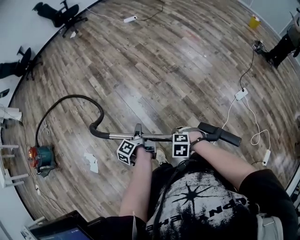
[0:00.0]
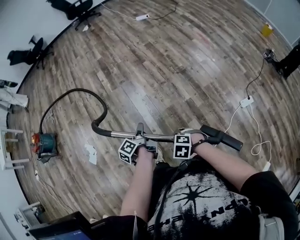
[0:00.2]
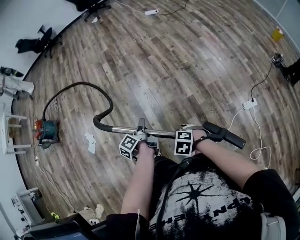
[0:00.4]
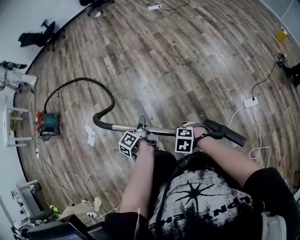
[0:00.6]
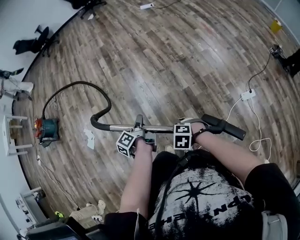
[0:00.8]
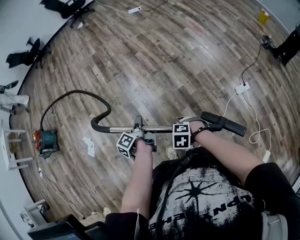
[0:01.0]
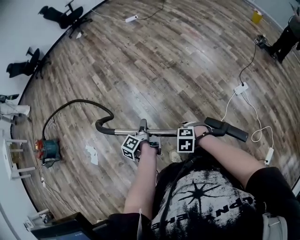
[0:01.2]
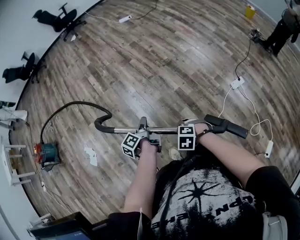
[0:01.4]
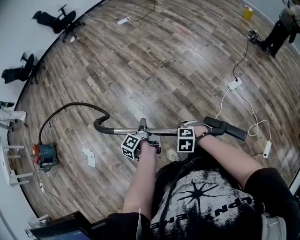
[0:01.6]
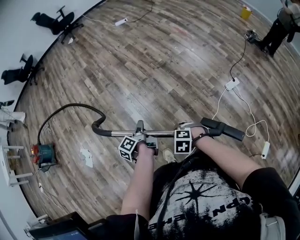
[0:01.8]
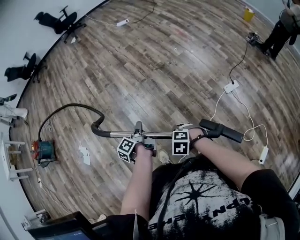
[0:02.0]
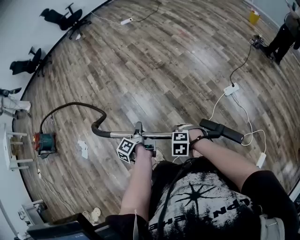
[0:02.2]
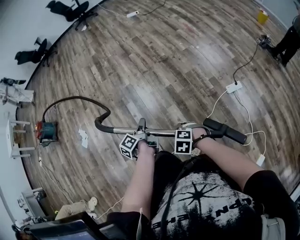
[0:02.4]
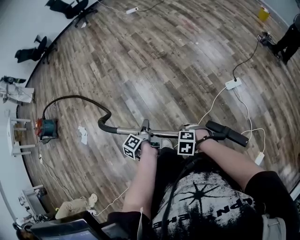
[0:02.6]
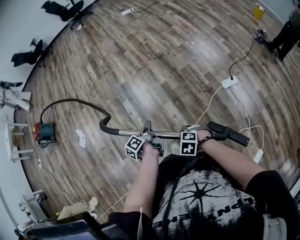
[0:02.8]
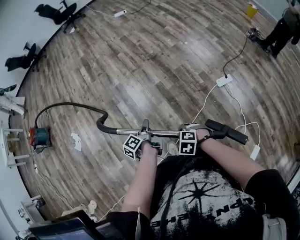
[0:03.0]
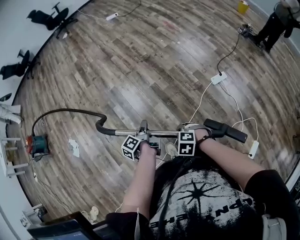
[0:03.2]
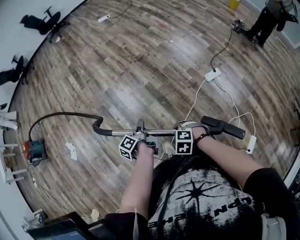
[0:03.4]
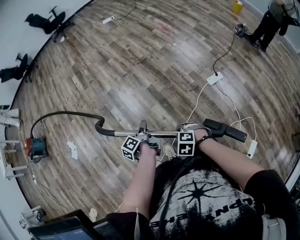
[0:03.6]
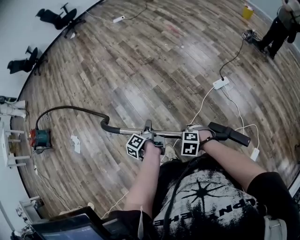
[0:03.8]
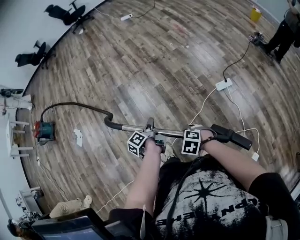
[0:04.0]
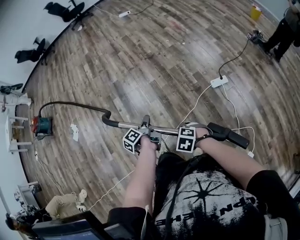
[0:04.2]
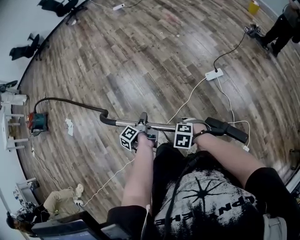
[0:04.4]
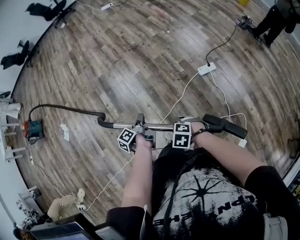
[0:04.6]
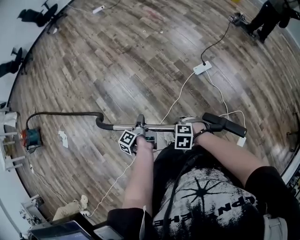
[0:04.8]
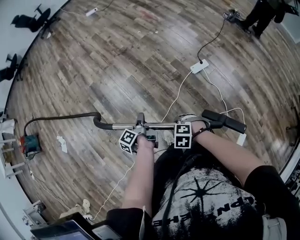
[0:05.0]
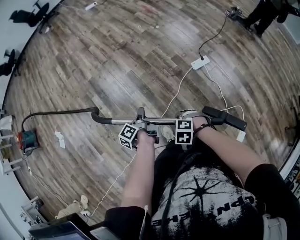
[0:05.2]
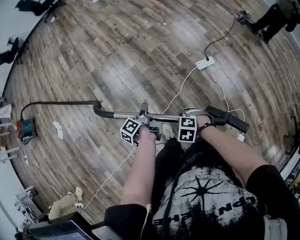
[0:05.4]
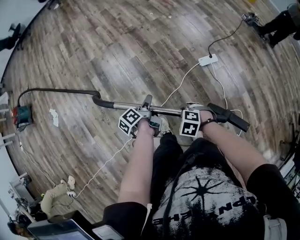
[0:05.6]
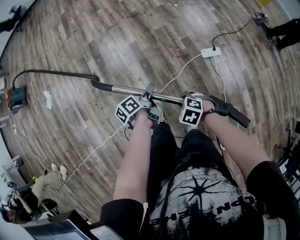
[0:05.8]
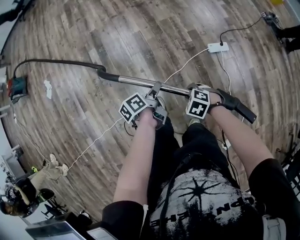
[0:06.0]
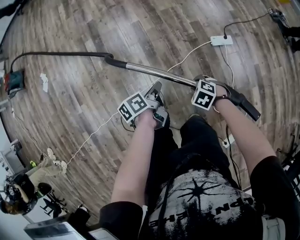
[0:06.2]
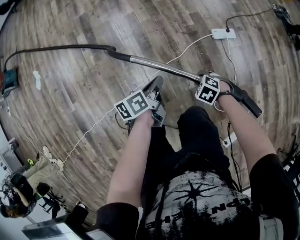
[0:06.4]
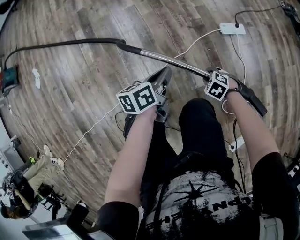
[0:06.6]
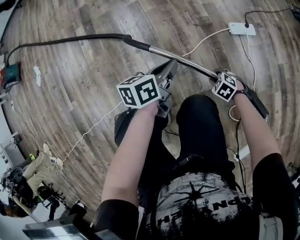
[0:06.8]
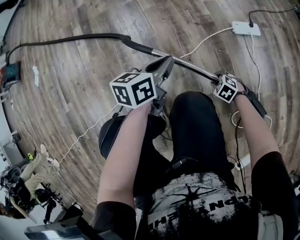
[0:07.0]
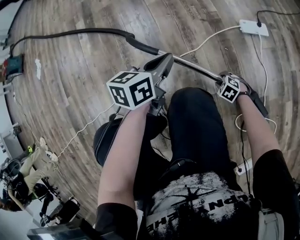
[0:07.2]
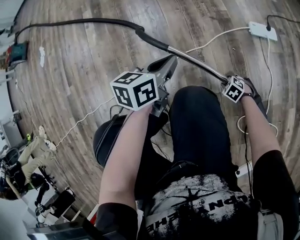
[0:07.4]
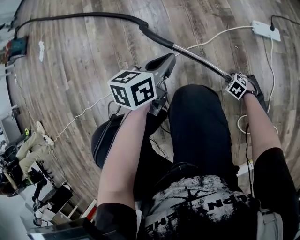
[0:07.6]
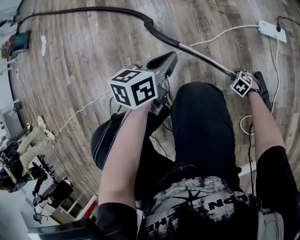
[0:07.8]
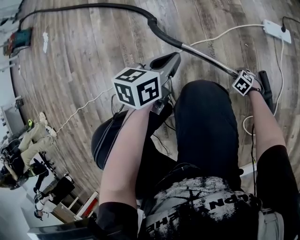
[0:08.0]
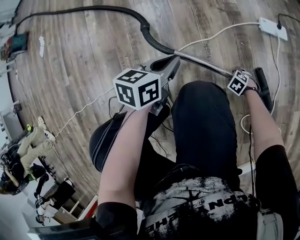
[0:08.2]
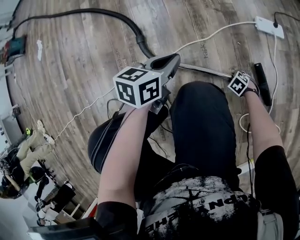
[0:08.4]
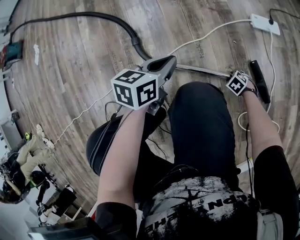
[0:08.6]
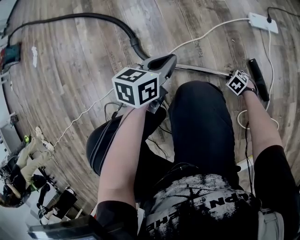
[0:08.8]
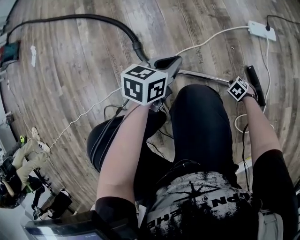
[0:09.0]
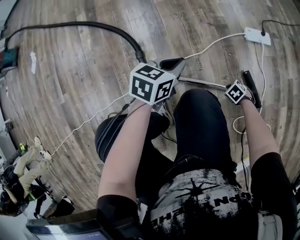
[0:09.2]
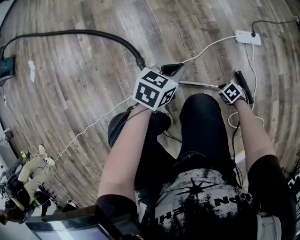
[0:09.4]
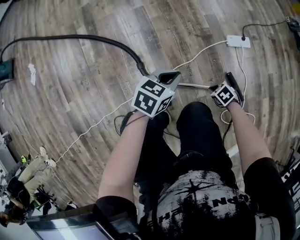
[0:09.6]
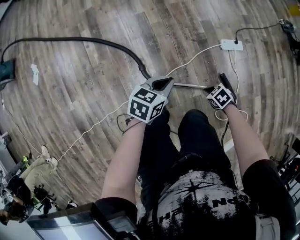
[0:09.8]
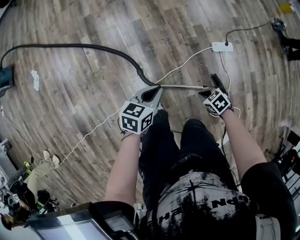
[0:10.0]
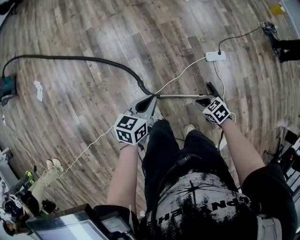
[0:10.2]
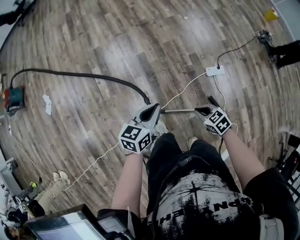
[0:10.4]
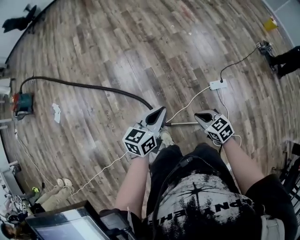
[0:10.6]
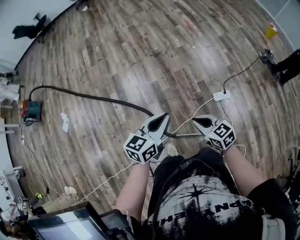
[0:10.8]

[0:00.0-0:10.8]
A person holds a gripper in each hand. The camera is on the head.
0:00.0 to 0:01.6: The left gripper moves approximately 20 cm, while the right gripper moves some 20 cm.
0:01.6 to 0:03.0: The right gripper ends up some 25 cm from where it was; the left gripper moves roughly 25 cm.
0:03.0 to 0:04.6: The left gripper ends up some 20 cm from where it was; the right gripper ends up roughly 20 cm from where it was.
0:04.6 to 0:06.2: The right gripper moves downward, about 20 cm. The left gripper changes place by approximately 20 cm, turns by approximately 20 degrees, and opens, then closes again.
0:06.2 to 0:07.8: The right gripper goes roughly 50 cm downward, while the left gripper heads downward, covering roughly 25 cm, and twists some 40 degrees clockwise, seen from behind.
0:07.8 to 0:09.2: The left gripper turns by some 20 degrees. Meanwhile the right gripper travels upward by approximately 5 cm, turns by approximately 20 degrees, and closes.
0:09.2 to 0:10.8: Both grippers travel together upward, approximately 70 cm. The left gripper rotates approximately 30 degrees, while the right gripper tips its fingers upward by approximately 40 degrees.

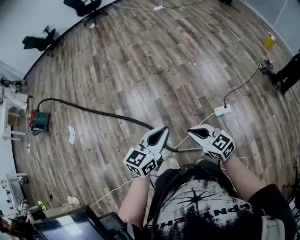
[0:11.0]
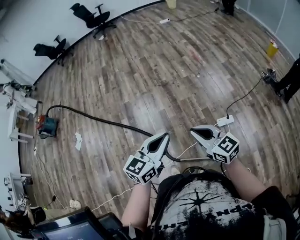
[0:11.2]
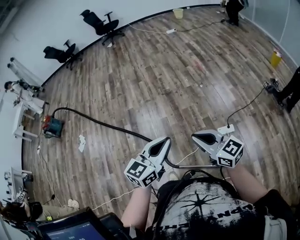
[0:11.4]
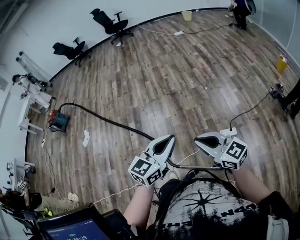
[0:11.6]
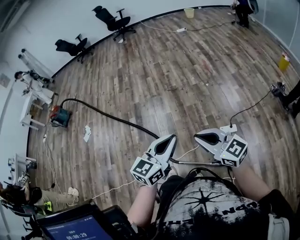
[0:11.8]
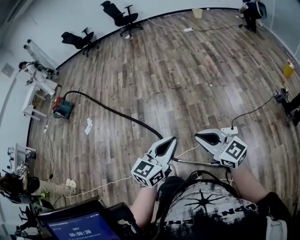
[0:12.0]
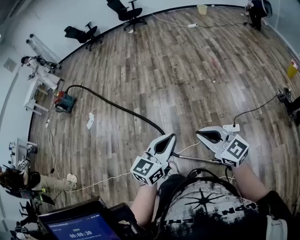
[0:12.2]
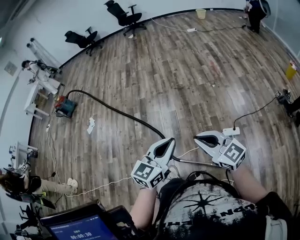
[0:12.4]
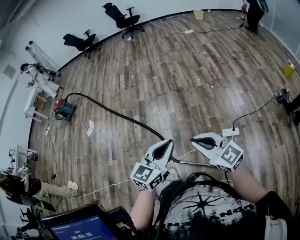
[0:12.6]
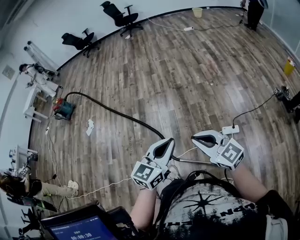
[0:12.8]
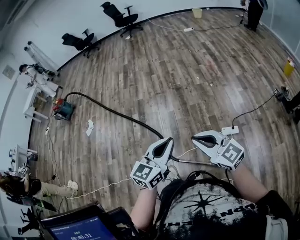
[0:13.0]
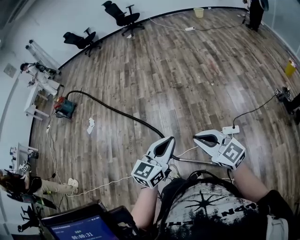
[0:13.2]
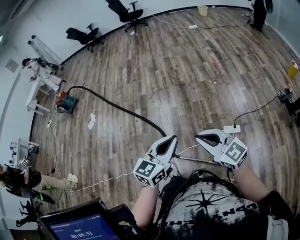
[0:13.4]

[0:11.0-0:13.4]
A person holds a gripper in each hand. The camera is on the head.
0:11.0 to 0:12.2: The right gripper travels upward, backward and to the right by approximately 20 cm, and turns by approximately 20 degrees. The left gripper heads backward, upward and to the right, covering about 20 cm.
0:12.2 to 0:13.4: The grippers move only a little.

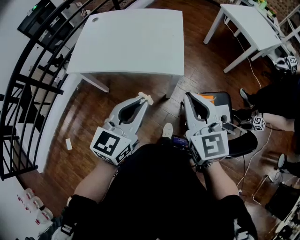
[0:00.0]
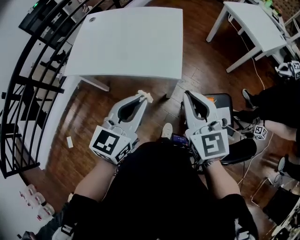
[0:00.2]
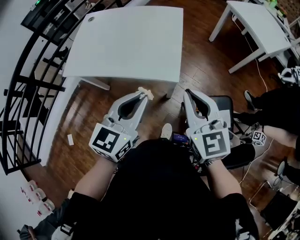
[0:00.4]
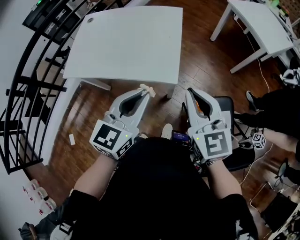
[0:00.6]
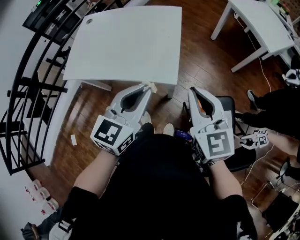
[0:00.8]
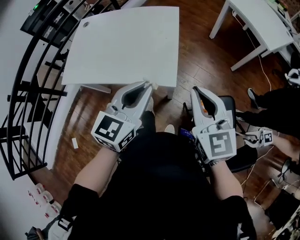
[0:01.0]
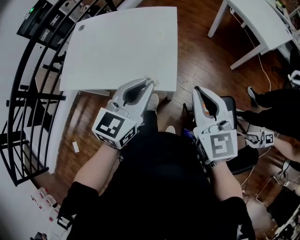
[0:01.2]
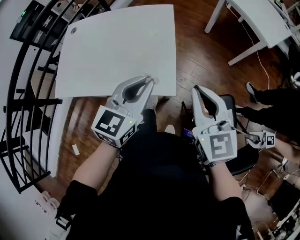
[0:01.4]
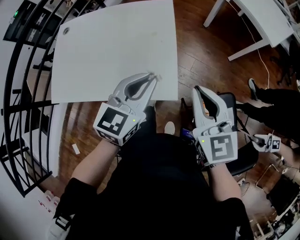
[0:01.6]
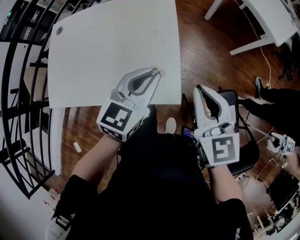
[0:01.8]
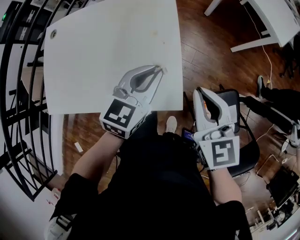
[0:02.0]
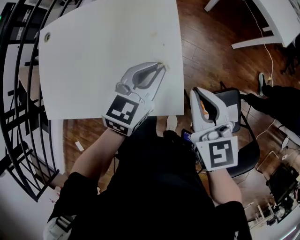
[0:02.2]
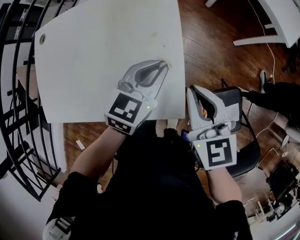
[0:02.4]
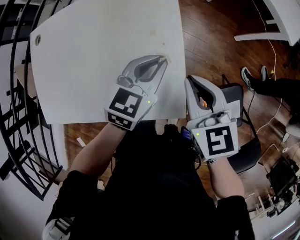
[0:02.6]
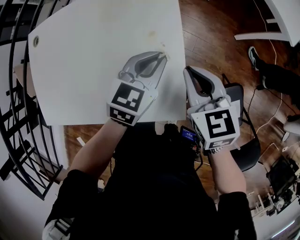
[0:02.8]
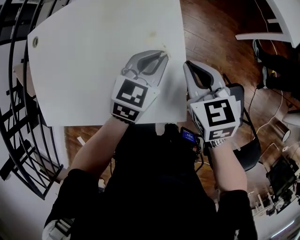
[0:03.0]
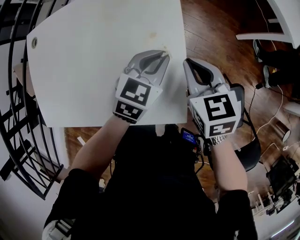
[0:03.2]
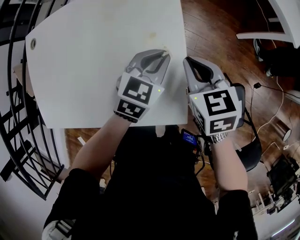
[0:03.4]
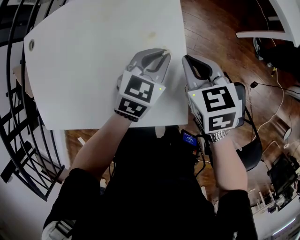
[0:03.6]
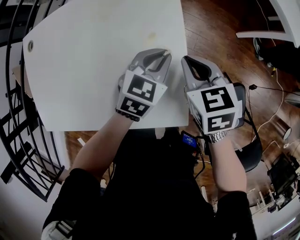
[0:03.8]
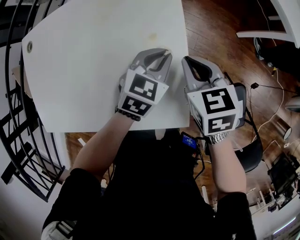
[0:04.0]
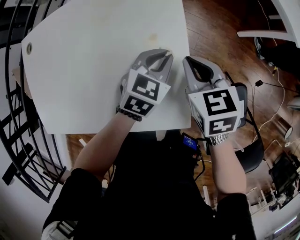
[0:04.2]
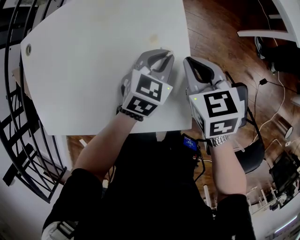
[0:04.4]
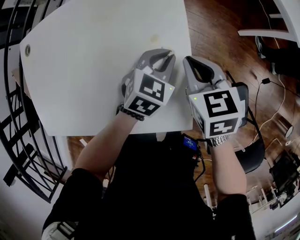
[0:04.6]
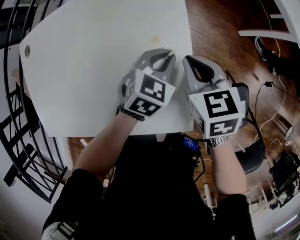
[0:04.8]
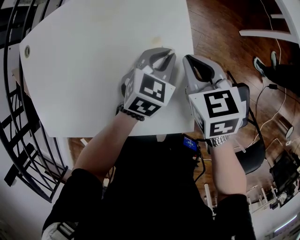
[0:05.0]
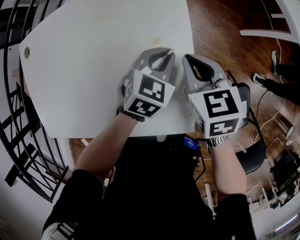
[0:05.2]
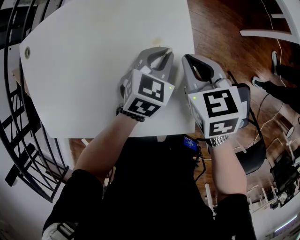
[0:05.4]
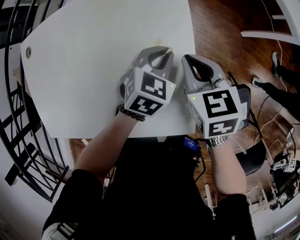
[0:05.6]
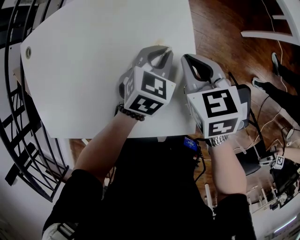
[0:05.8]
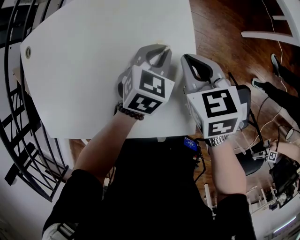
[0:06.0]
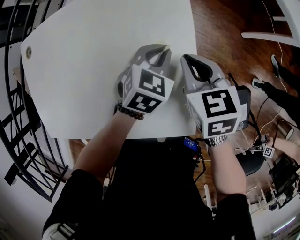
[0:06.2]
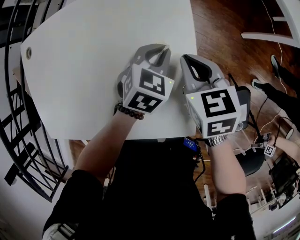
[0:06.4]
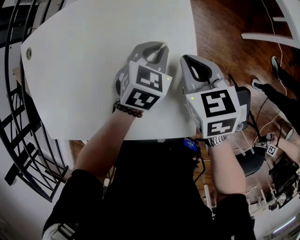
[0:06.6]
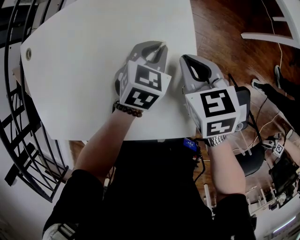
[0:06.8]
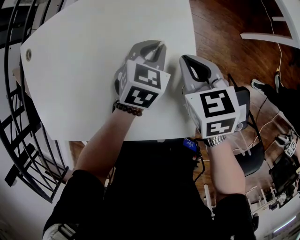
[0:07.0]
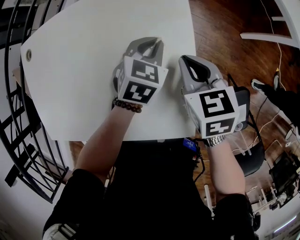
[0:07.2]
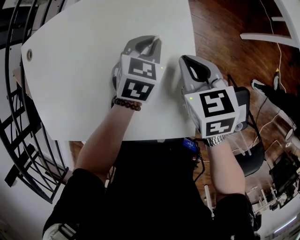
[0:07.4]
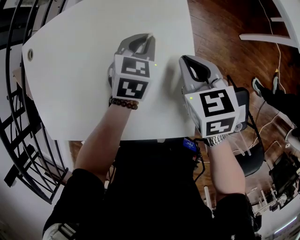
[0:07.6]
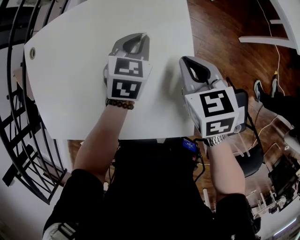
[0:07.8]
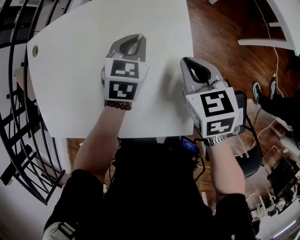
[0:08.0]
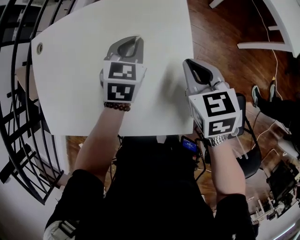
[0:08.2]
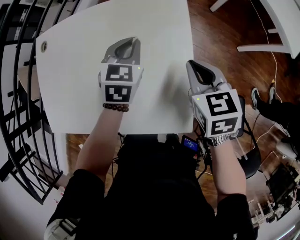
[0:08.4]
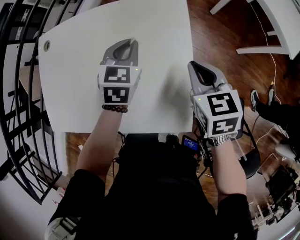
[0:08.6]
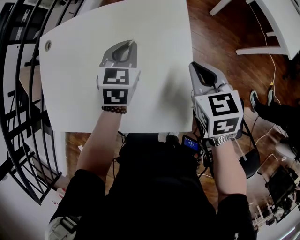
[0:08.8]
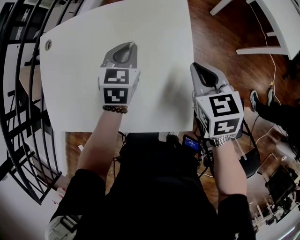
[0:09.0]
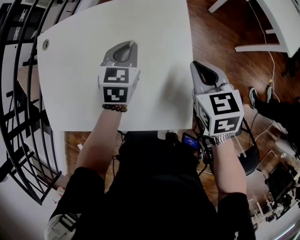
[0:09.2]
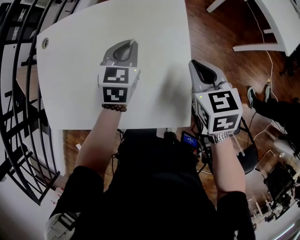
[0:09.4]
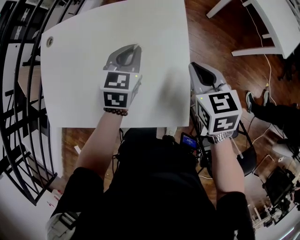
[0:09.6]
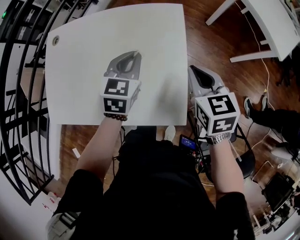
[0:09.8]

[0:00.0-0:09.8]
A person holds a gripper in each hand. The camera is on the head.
0:00.0 to 0:01.4: The two grippers go roughly 20 cm forward.
0:01.4 to 0:02.8: The right gripper shifts approximately 25 cm forward, downward and to the left, and changes its angle by about 20 degrees, while the left gripper shifts about 25 cm forward and downward.
0:02.8 to 0:04.2: The two grippers go some 5 cm downward.
0:04.2 to 0:05.6: The grippers move only a little.
0:05.6 to 0:07.0: The grippers make only small movements.
0:07.0 to 0:08.4: The left gripper is displaced to the left and upward by roughly 15 cm, while the right gripper is displaced upward by roughly 5 cm.
0:08.4 to 0:09.8: The right gripper travels upward by approximately 10 cm. Meanwhile the left gripper is displaced upward and backward by about 10 cm.
